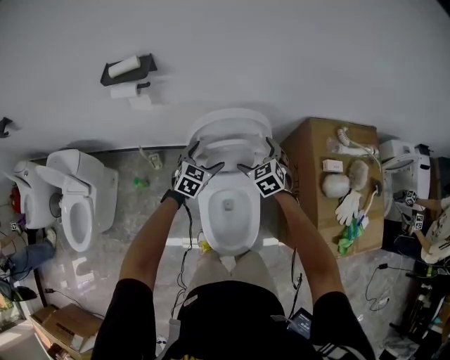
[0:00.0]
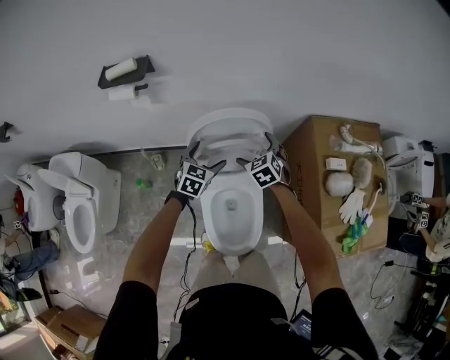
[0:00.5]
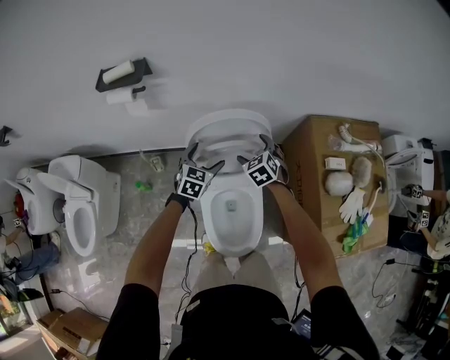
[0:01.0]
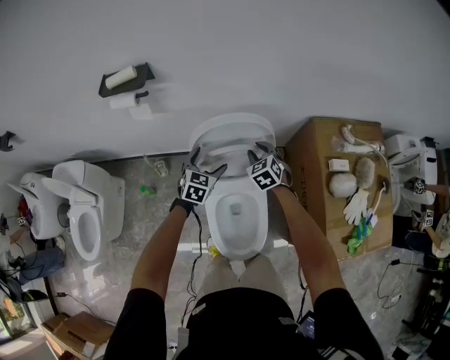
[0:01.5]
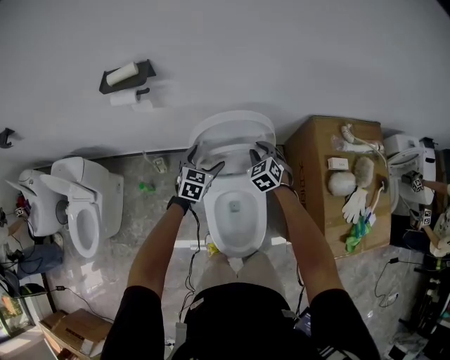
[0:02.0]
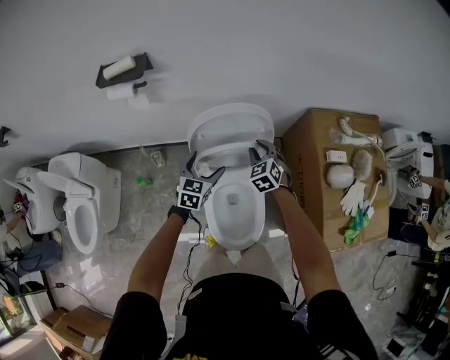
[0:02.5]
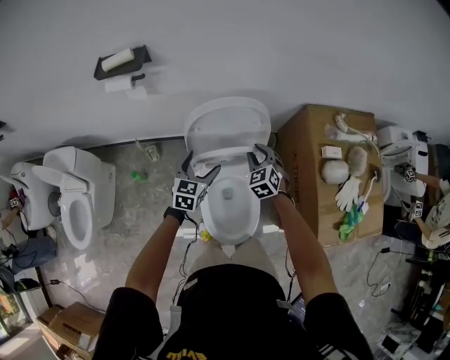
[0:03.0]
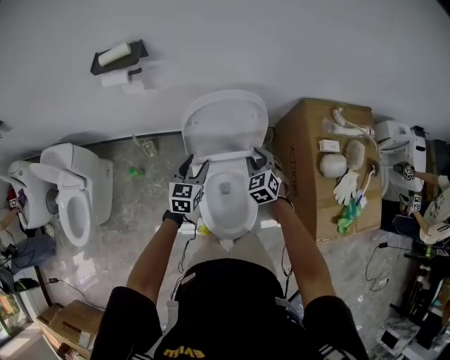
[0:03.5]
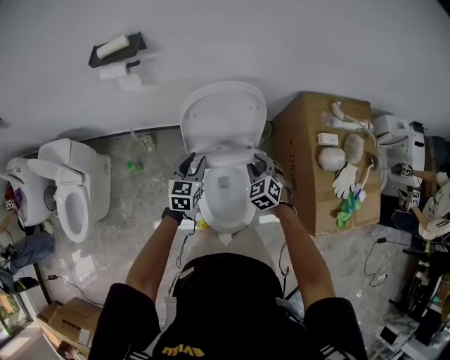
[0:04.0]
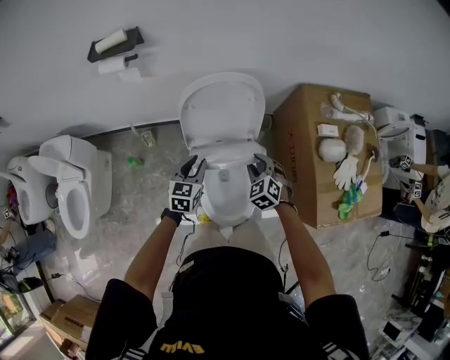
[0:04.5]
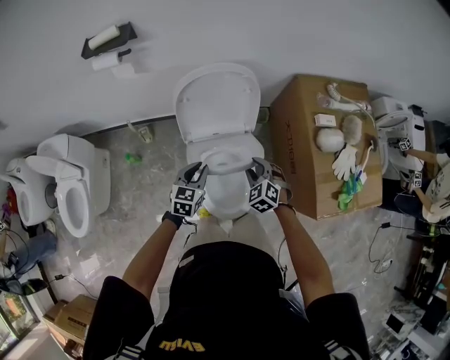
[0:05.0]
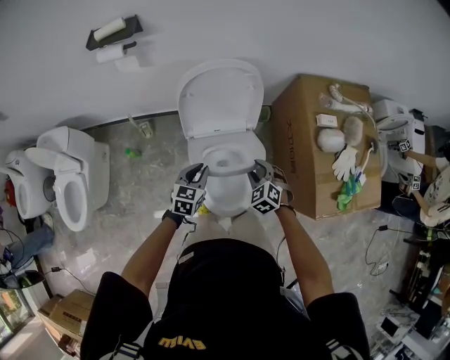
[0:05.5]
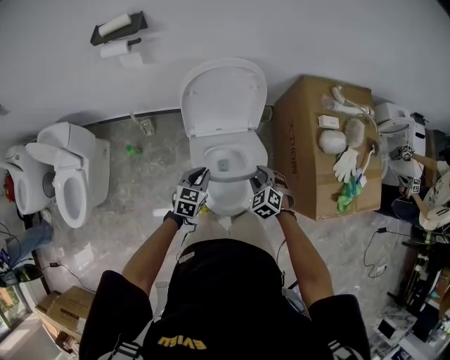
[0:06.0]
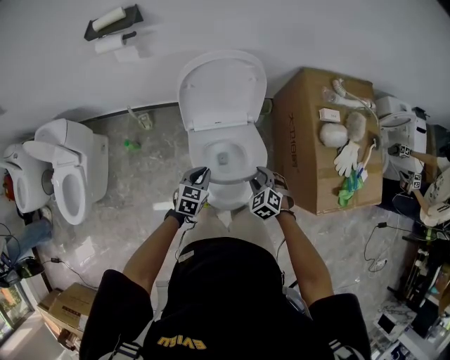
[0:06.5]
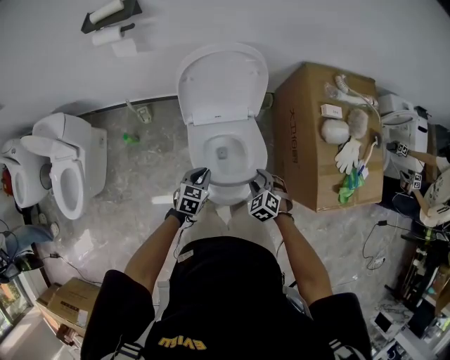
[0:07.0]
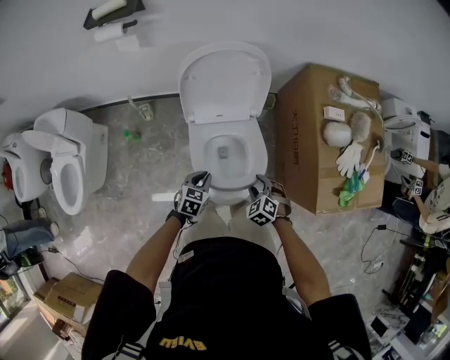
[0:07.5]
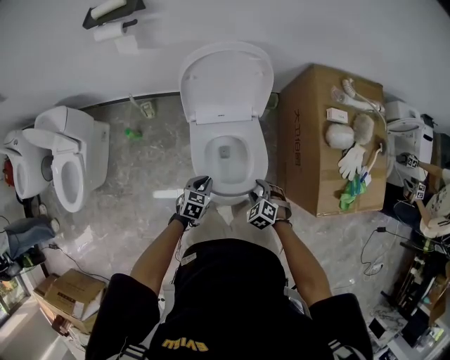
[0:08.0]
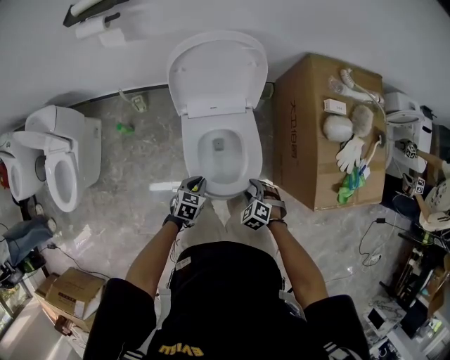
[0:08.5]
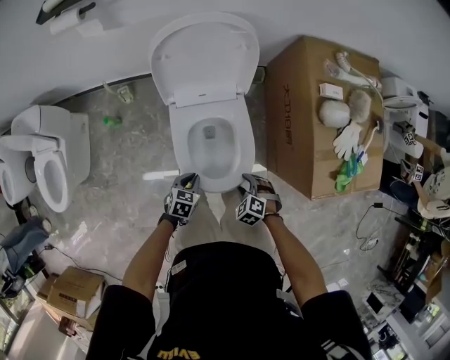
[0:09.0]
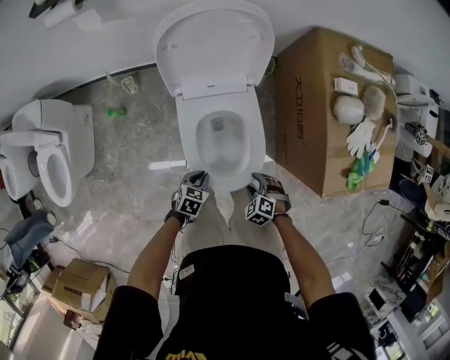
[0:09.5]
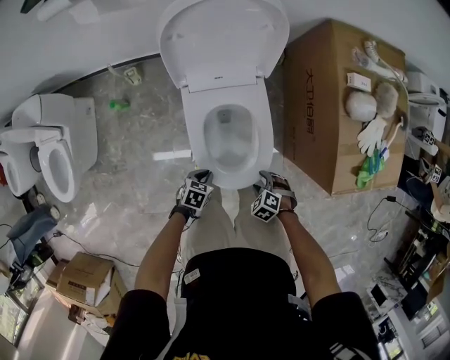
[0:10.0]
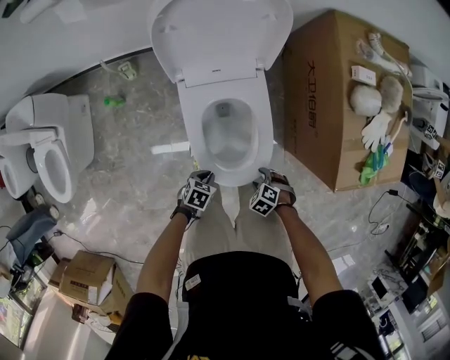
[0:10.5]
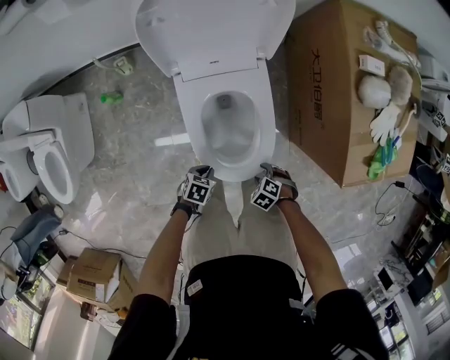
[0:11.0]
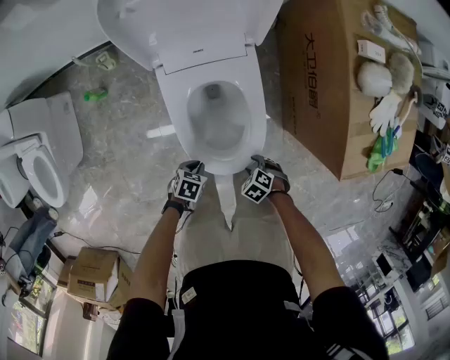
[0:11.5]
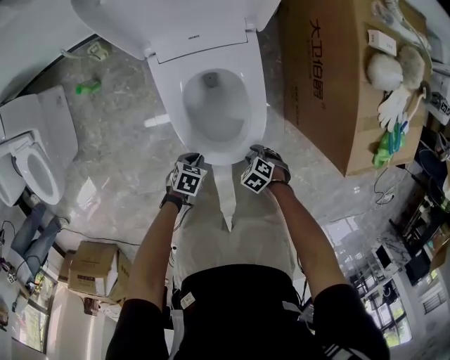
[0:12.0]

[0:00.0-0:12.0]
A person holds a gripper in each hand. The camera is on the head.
0:00.0 to 0:02.0: The right gripper closes its fingers.
0:02.0 to 0:04.0: The grippers both shift backward by approximately 15 cm. The left gripper closes its fingers.
0:04.0 to 0:06.0: Both grippers travel together backward and downward, roughly 15 cm.
0:06.0 to 0:08.0: The left gripper heads downward and backward, covering some 10 cm, while the right gripper travels backward and downward by some 10 cm.
0:08.0 to 0:10.0: Both grippers travel together downward, roughly 10 cm. The left gripper rotates roughly 20 degrees.
0:10.0 to 0:12.0: The grippers both shift downward by roughly 10 cm.

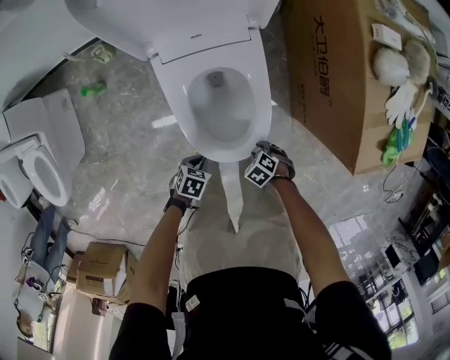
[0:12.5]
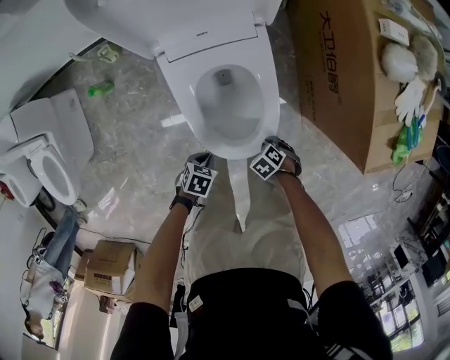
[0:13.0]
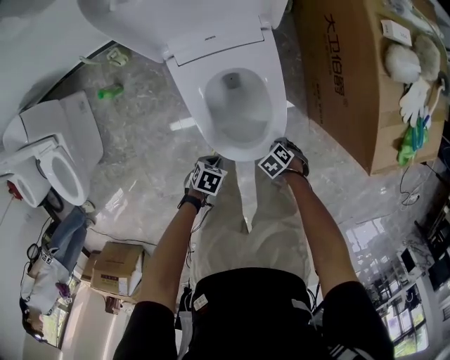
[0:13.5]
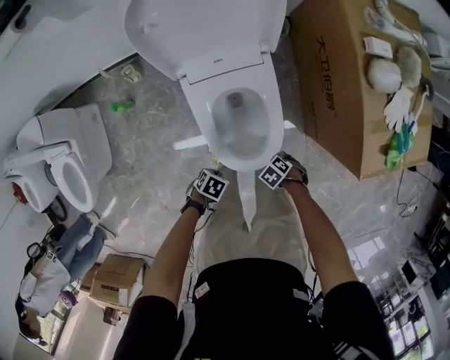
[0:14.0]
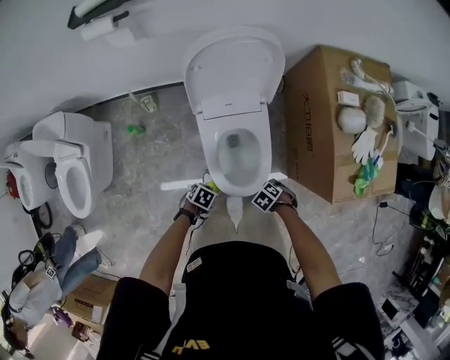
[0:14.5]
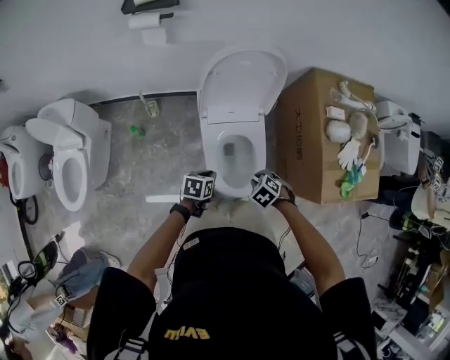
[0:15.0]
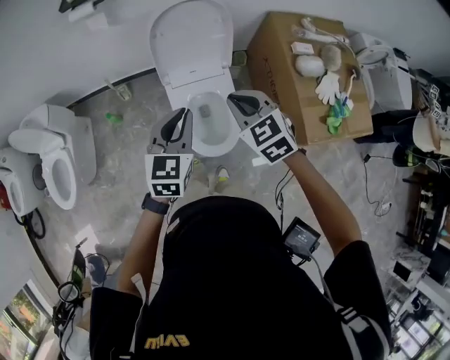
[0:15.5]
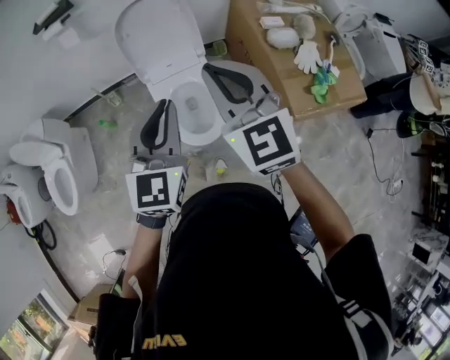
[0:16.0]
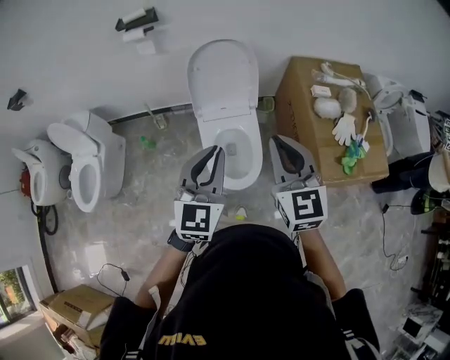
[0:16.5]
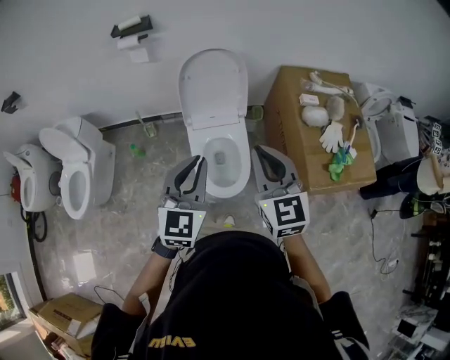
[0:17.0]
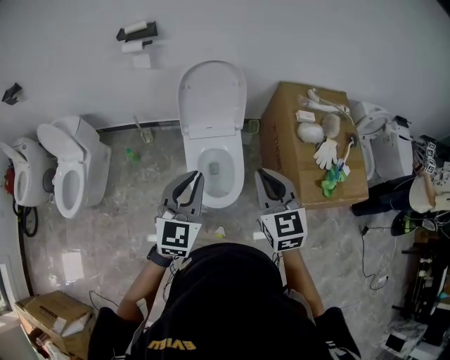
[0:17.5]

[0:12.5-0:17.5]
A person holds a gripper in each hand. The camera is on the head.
0:12.5 to 0:15.0: The grippers both shift upward by about 30 cm. The left gripper rotates approximately 30 degrees.
0:15.0 to 0:17.5: Both grippers travel together upward, some 35 cm. The right gripper angles its fingers upward, by some 60 degrees; the left gripper points its fingers roughly 40 degrees further upward.

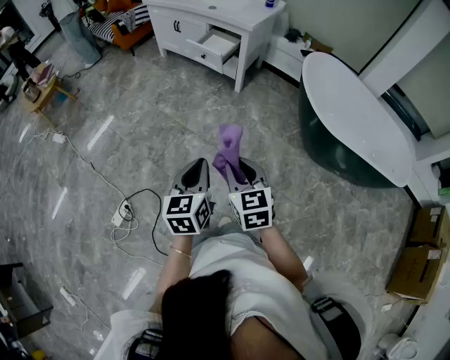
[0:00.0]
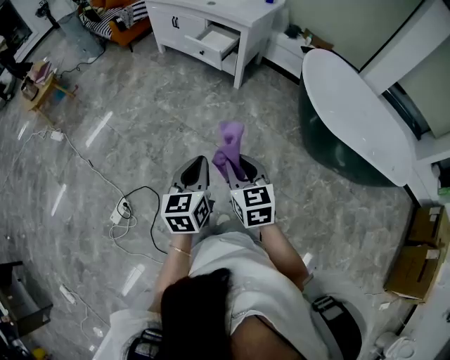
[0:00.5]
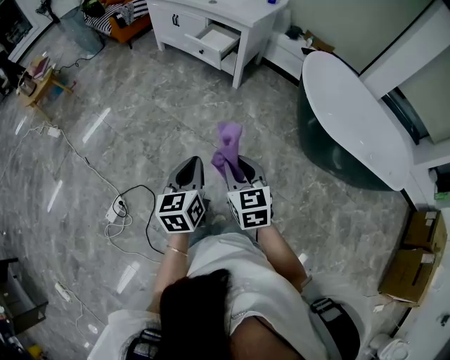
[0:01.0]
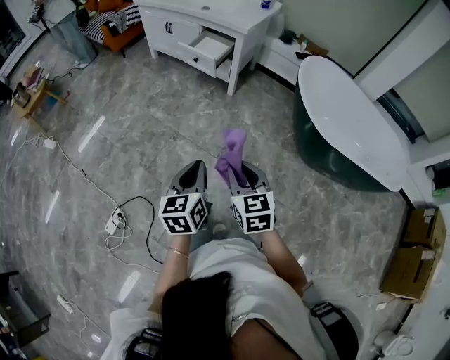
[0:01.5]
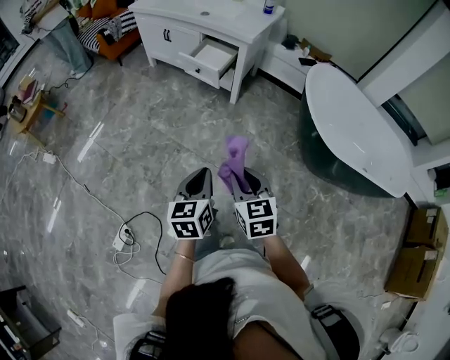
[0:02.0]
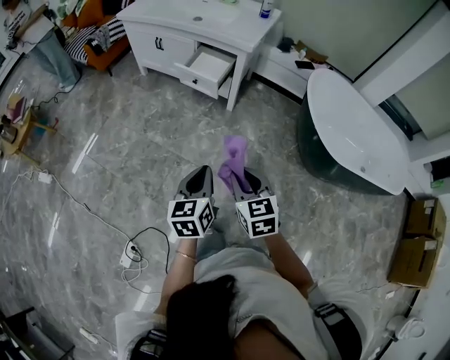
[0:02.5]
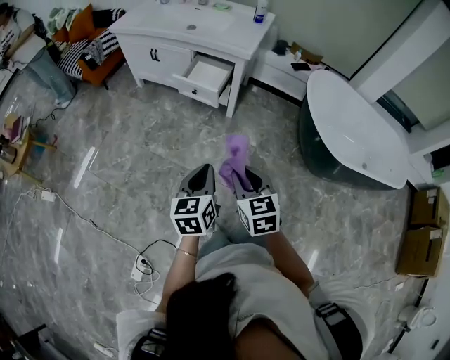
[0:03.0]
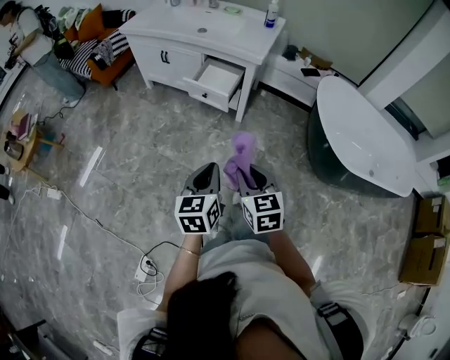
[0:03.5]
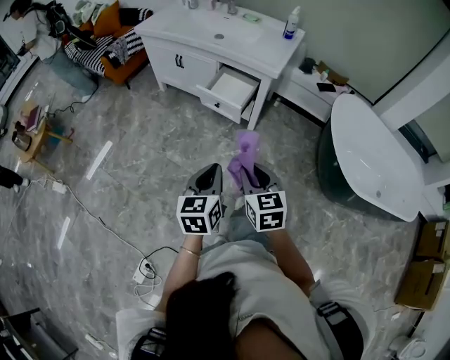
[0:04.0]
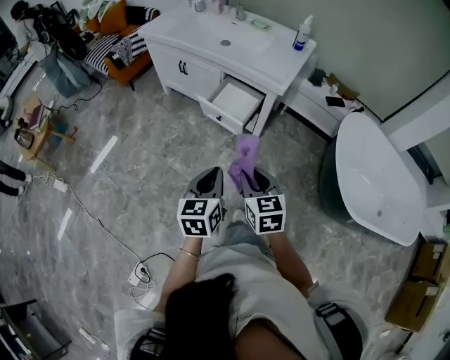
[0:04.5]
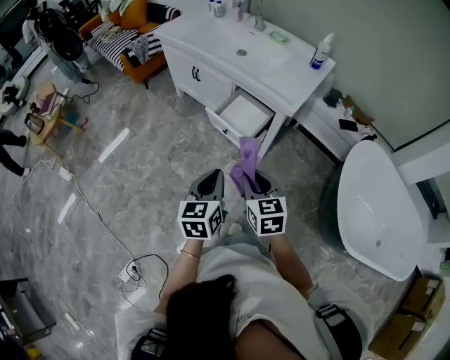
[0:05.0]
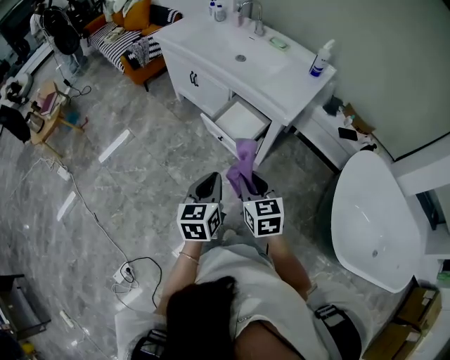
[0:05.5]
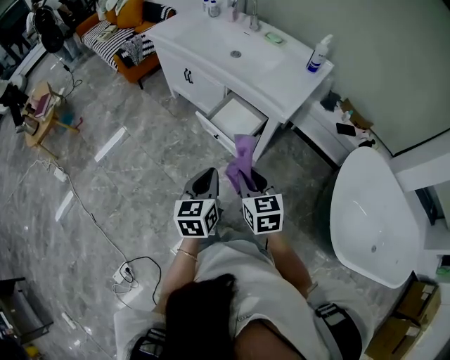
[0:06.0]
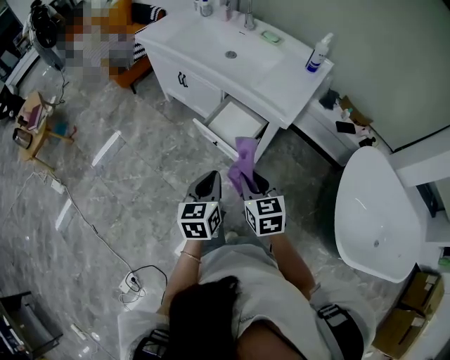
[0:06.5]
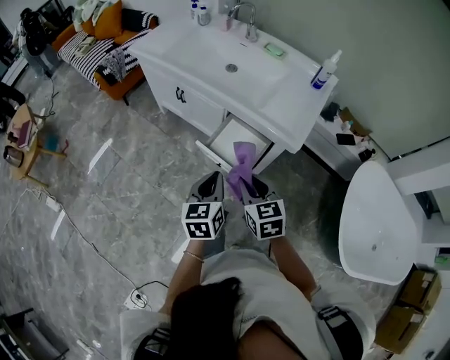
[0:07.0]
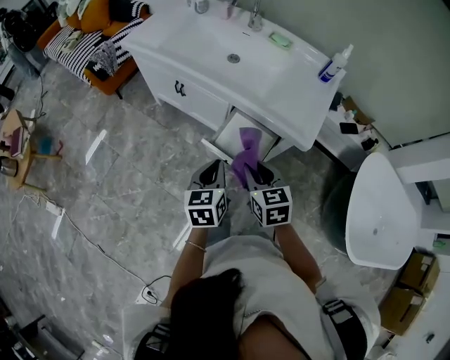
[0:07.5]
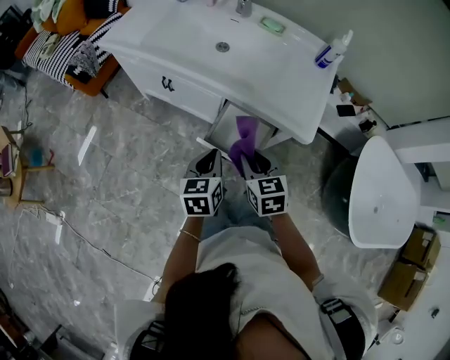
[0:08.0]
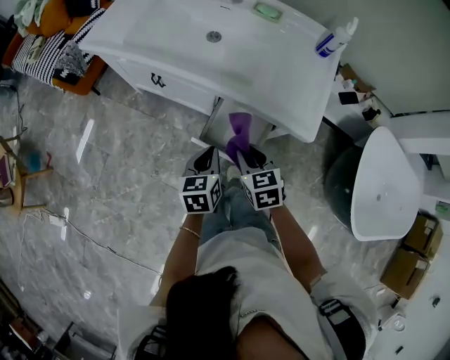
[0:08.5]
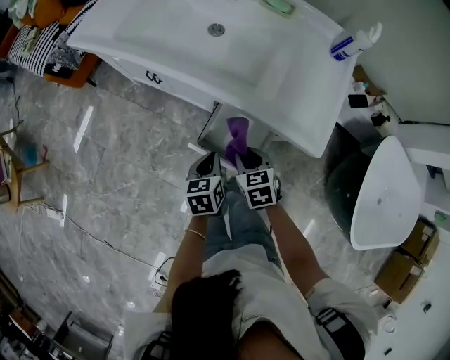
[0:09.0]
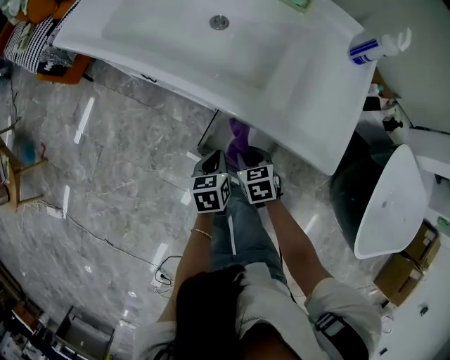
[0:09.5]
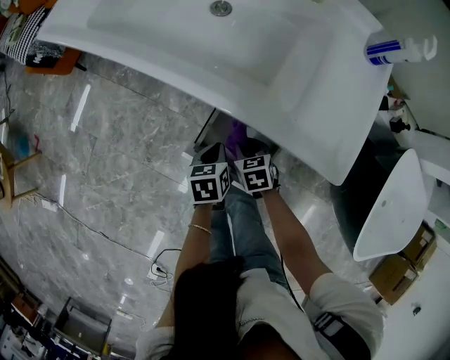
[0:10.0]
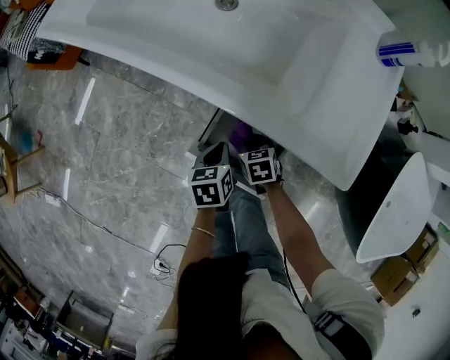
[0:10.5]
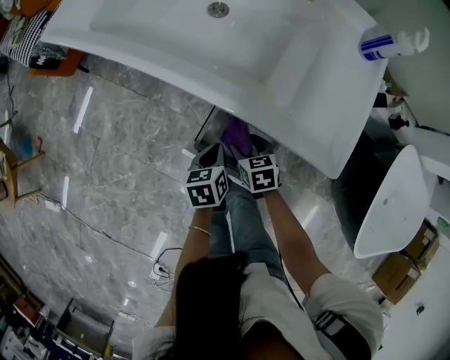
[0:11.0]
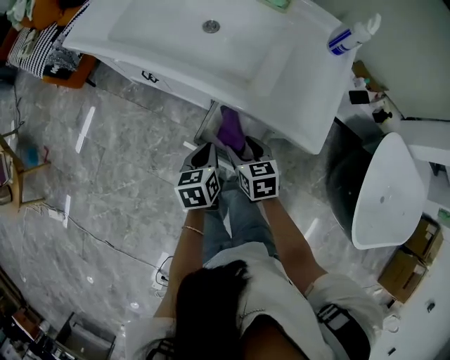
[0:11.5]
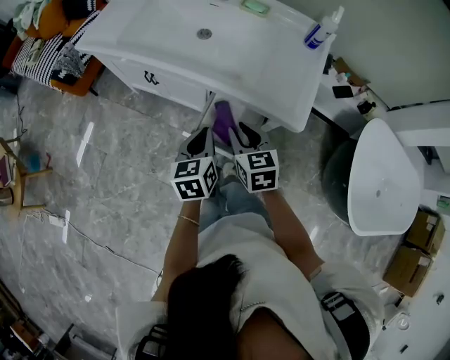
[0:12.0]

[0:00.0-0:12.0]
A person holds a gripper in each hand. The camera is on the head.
0:00.0 to 0:02.0: Both grippers travel together forward, about 15 cm.
0:02.0 to 0:04.0: The two grippers go about 25 cm forward and to the left.
0:04.0 to 0:06.0: The grippers both shift forward and to the right by roughly 25 cm.
0:06.0 to 0:08.0: Both grippers travel together forward, approximately 25 cm.
0:08.0 to 0:10.0: The grippers both shift downward and forward by some 30 cm. The right gripper swivels about 20 degrees; the left gripper changes its angle by approximately 30 degrees.
0:10.0 to 0:12.0: Both grippers travel together upward, approximately 25 cm. The right gripper turns by some 30 degrees, and opens, then closes once more. Meanwhile the left gripper turns by about 30 degrees.
